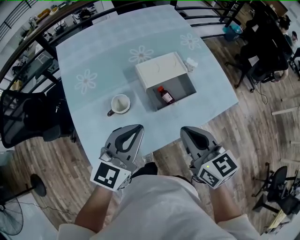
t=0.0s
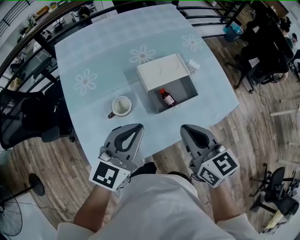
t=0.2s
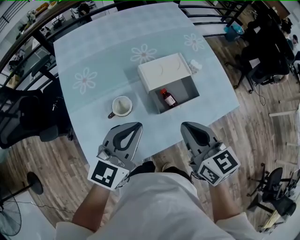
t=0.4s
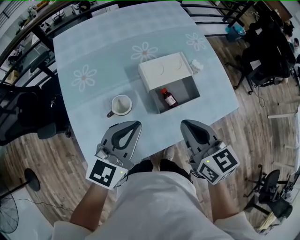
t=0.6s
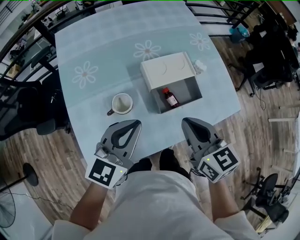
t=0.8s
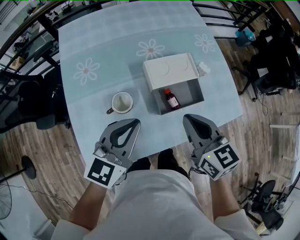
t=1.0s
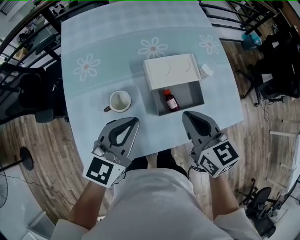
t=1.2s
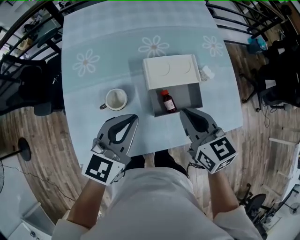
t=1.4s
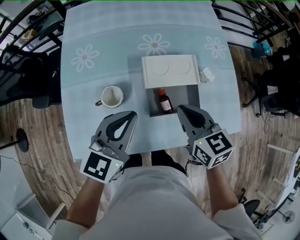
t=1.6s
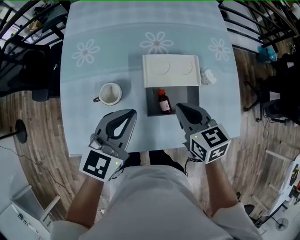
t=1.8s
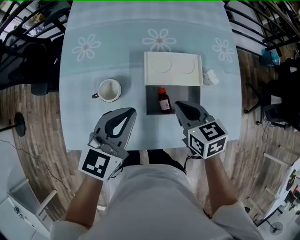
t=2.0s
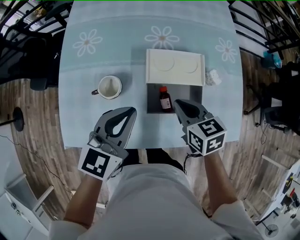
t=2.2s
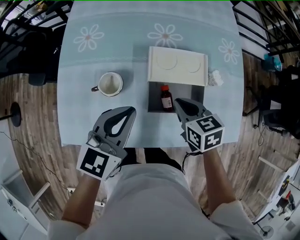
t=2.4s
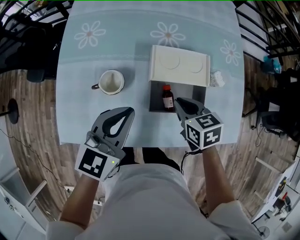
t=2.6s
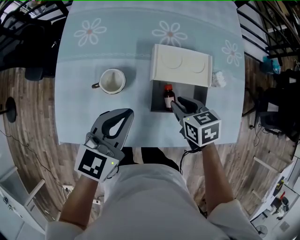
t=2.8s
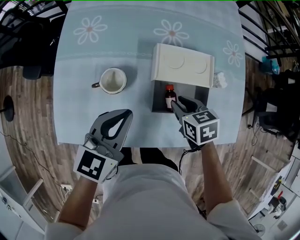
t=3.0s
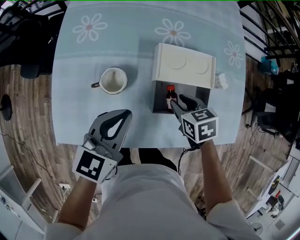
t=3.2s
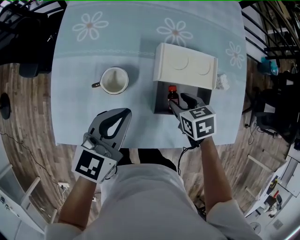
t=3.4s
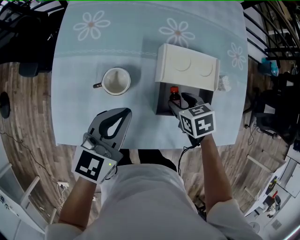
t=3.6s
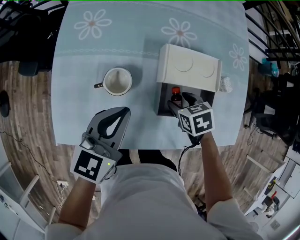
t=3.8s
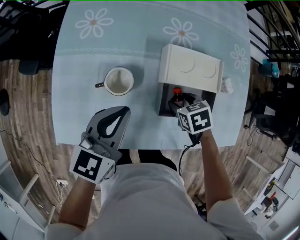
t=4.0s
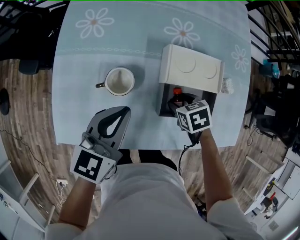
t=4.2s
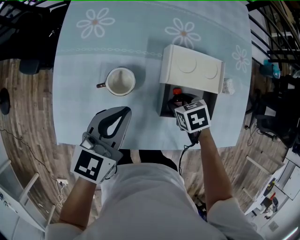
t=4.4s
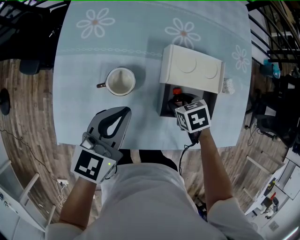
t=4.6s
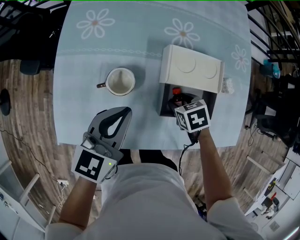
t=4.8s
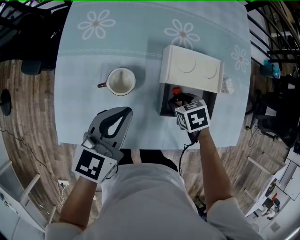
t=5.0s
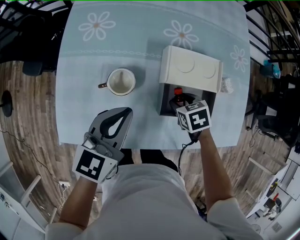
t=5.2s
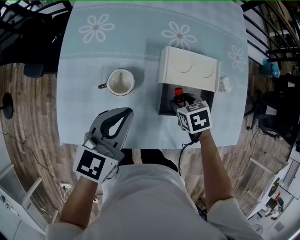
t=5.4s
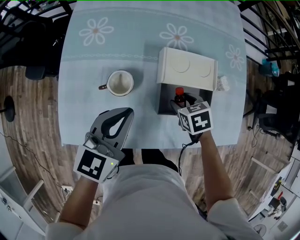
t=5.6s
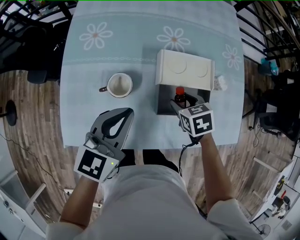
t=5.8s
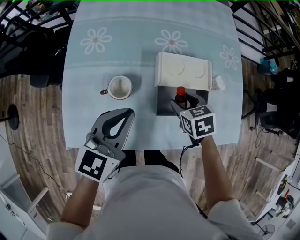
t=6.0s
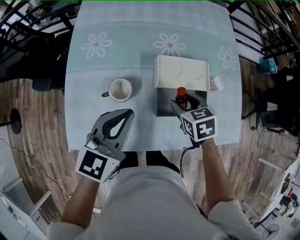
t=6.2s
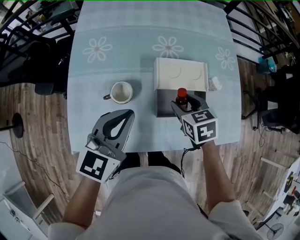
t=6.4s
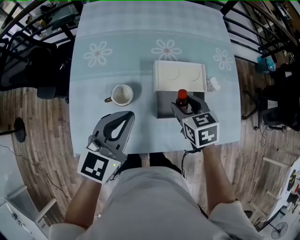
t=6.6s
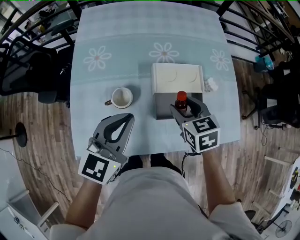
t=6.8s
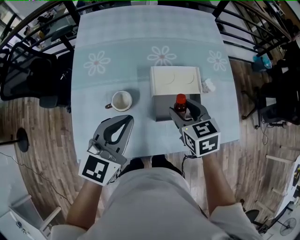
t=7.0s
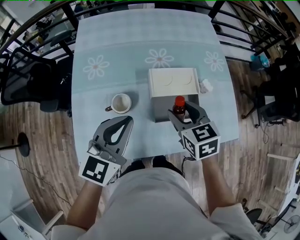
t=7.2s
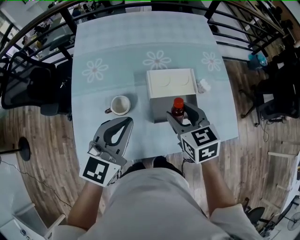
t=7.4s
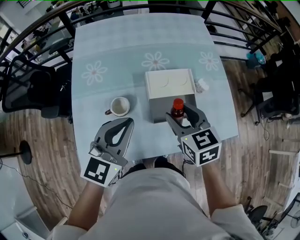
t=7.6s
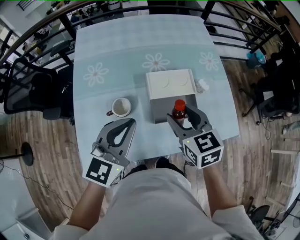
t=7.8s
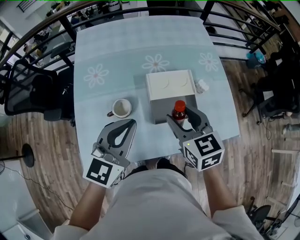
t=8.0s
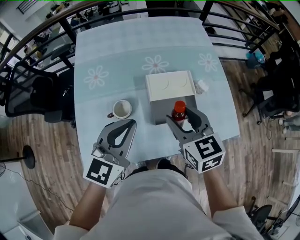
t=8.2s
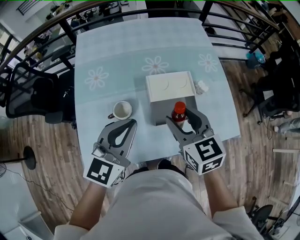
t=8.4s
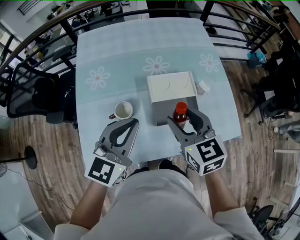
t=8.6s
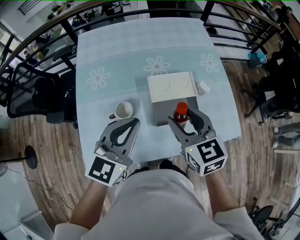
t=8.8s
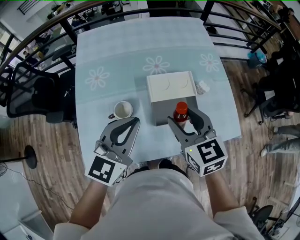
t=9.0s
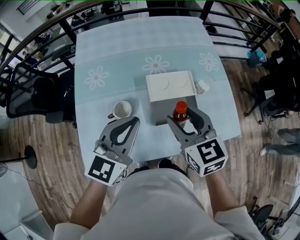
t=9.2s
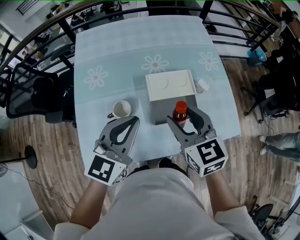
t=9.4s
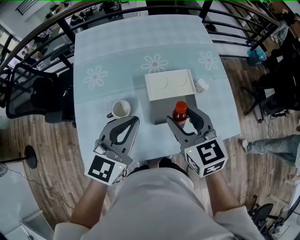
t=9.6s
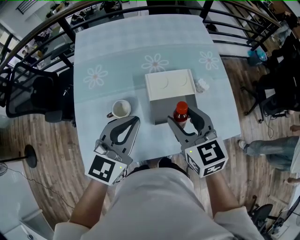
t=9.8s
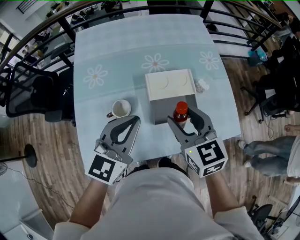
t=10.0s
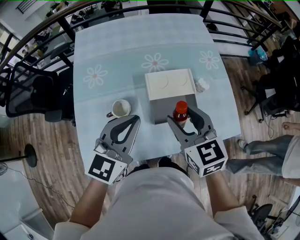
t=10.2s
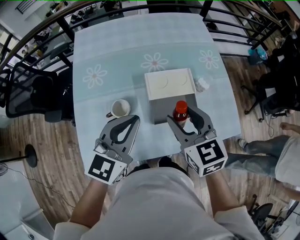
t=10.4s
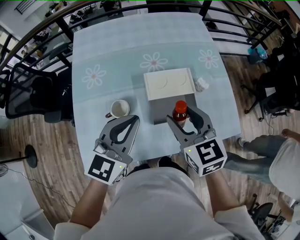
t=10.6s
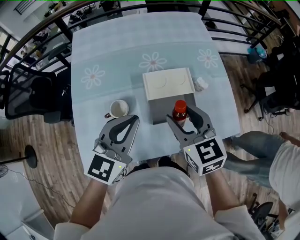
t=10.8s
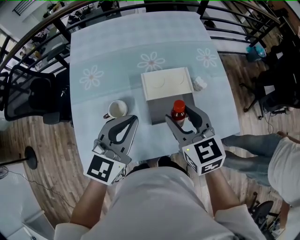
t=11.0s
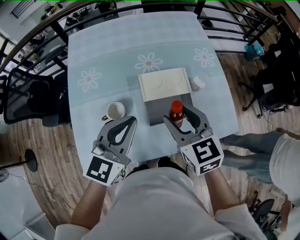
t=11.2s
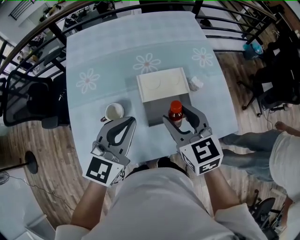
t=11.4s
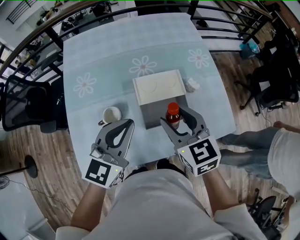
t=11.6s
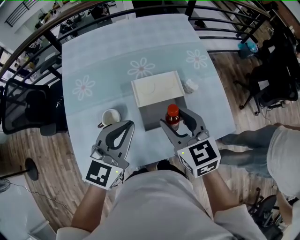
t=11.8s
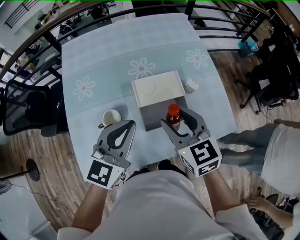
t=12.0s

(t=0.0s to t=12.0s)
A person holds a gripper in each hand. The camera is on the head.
t=0.0s - t=1.6s: The left gripper moves forward and downward, roughly 10 cm, while the right gripper goes roughly 20 cm forward and downward.
t=1.6s - t=3.0s: The right gripper goes some 15 cm downward, swivels some 30 degrees, and opens up; the left gripper moves downward, roughly 5 cm.
t=3.0s - t=4.4s: The right gripper is displaced downward by about 5 cm, and opens up.
t=4.4s - t=6.0s: Both grippers move upward, approximately 10 cm.
t=6.0s - t=7.6s: The left gripper goes about 10 cm upward. The right gripper moves upward, about 15 cm, and swivels about 30 degrees.
t=7.6s - t=10.4s: There are only small adjustments of the grippers.
t=10.4s - t=12.0s: The grippers move only a little.

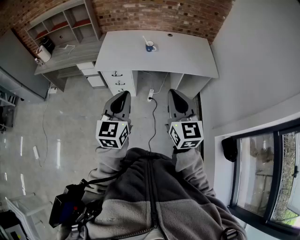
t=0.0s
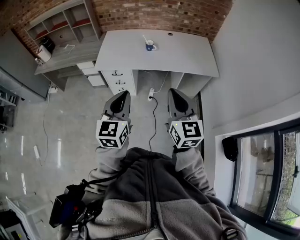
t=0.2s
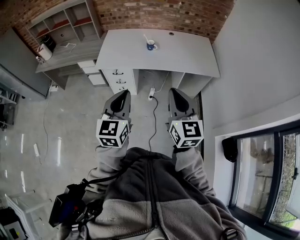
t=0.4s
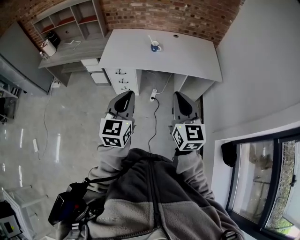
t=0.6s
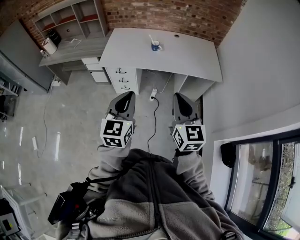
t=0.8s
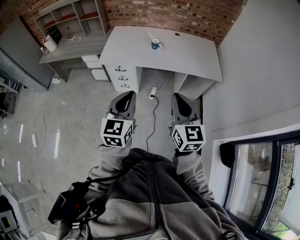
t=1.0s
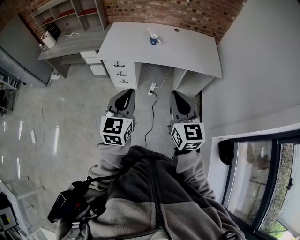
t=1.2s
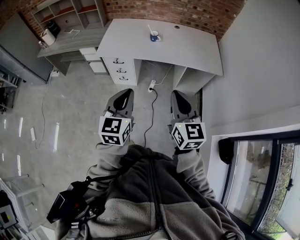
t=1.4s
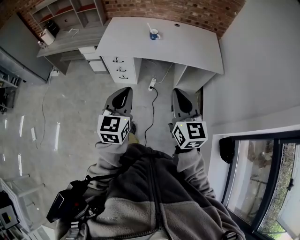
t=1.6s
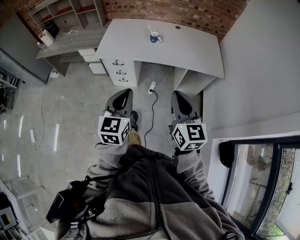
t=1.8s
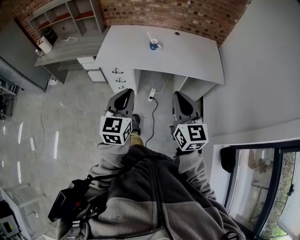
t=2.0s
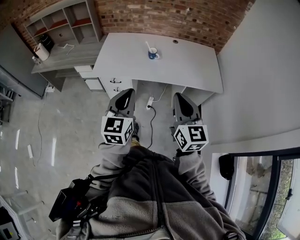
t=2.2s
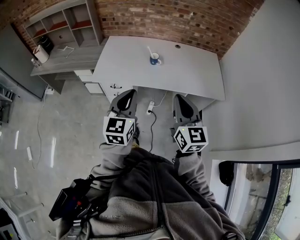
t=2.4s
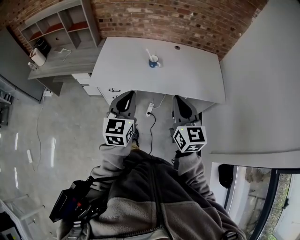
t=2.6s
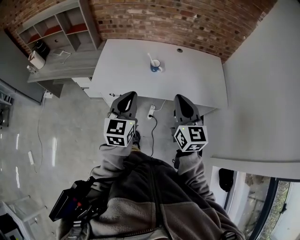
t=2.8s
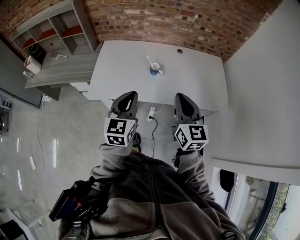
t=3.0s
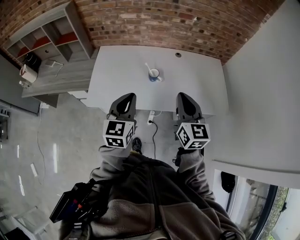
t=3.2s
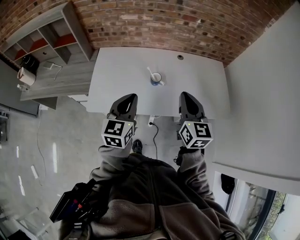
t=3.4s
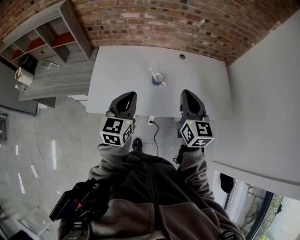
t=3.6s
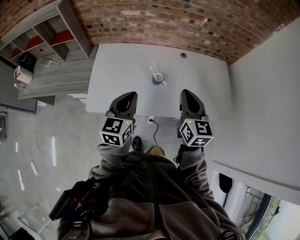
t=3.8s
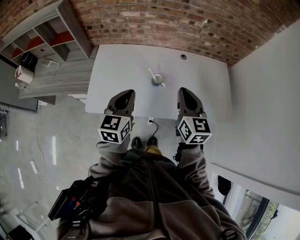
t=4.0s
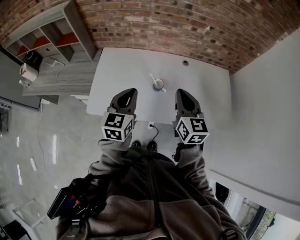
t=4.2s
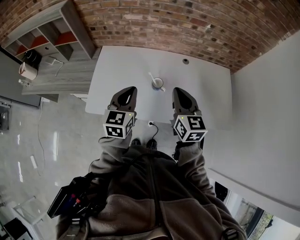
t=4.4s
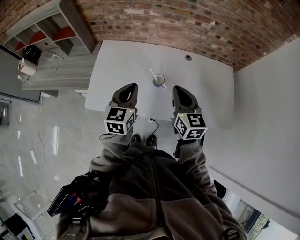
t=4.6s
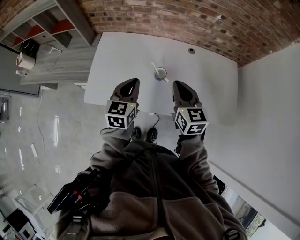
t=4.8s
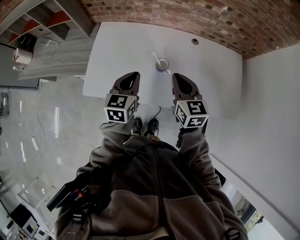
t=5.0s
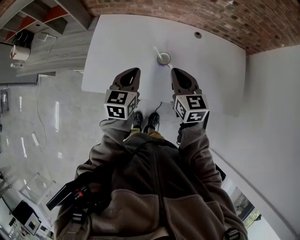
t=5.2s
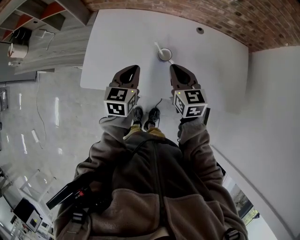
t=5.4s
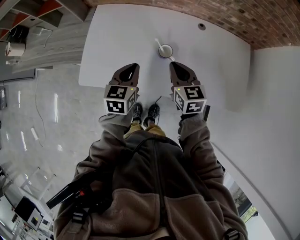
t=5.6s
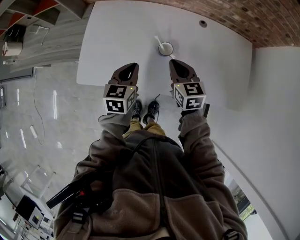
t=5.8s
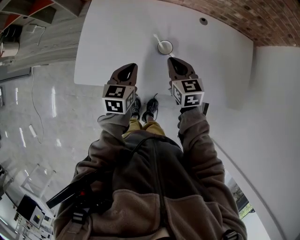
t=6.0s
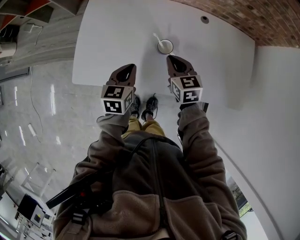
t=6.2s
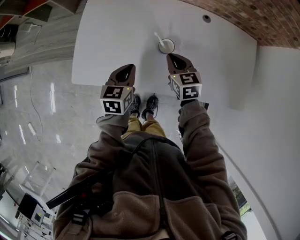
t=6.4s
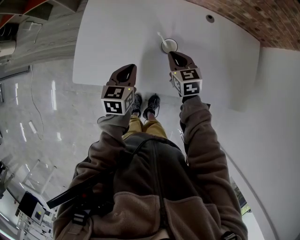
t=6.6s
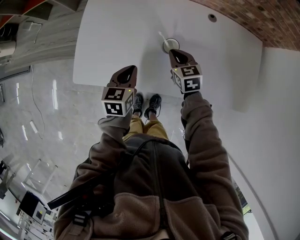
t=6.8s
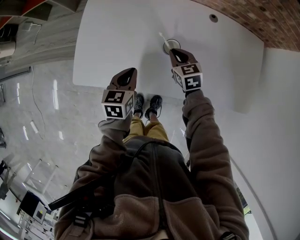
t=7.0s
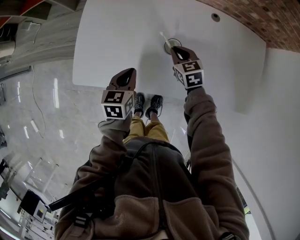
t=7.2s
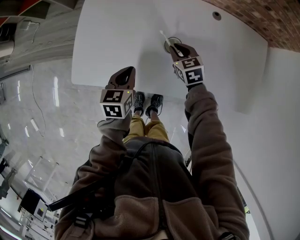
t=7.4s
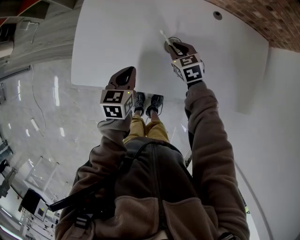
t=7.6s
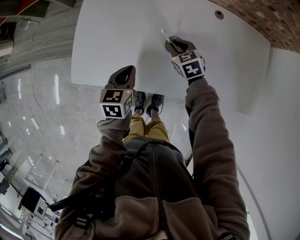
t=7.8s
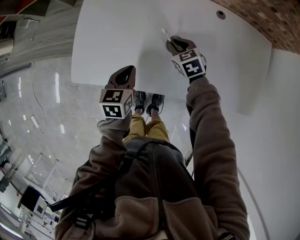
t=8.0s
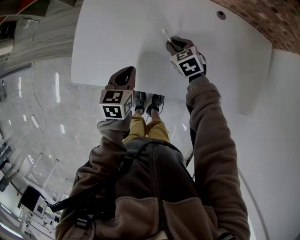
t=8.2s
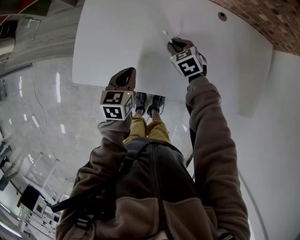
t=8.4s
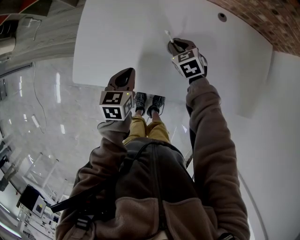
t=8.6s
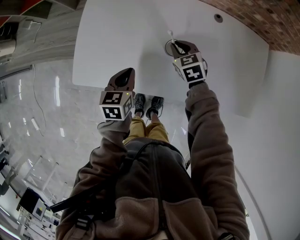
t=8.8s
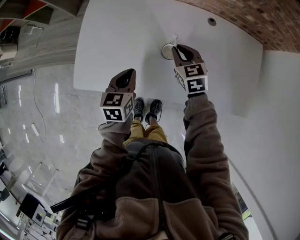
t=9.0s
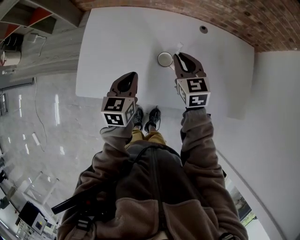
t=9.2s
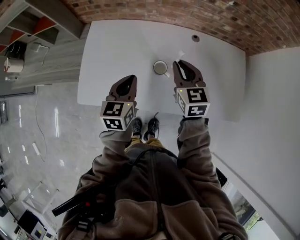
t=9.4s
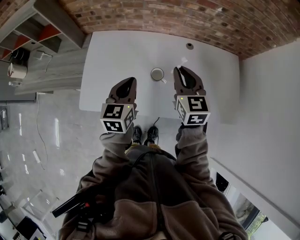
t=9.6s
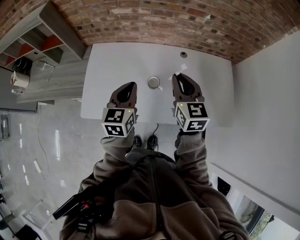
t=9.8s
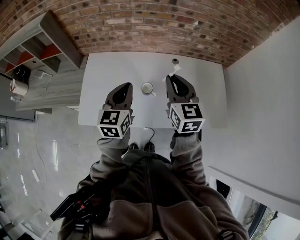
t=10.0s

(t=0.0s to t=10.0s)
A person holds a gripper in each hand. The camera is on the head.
t=0.0s - t=1.4s: The left gripper changes place by roughly 5 cm. The right gripper changes place by roughly 5 cm.
t=1.4s - t=2.8s: The two grippers go some 30 cm forward.
t=2.8s - t=4.2s: The grippers both shift forward by roughly 25 cm.
t=4.2s - t=5.8s: The left gripper moves downward, approximately 15 cm, and swivels roughly 20 degrees. The right gripper shifts some 20 cm downward and forward, and swivels about 20 degrees.
t=5.8s - t=7.2s: The right gripper moves downward and forward, some 15 cm. Meanwhile the left gripper moves downward, approximately 10 cm.
t=7.2s - t=8.6s: The grippers stay close to where they were, moving slightly.
t=8.6s - t=10.0s: The grippers both shift upward by about 35 cm. The left gripper changes its angle by roughly 30 degrees; the right gripper points its fingers roughly 40 degrees further upward.

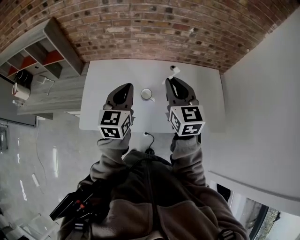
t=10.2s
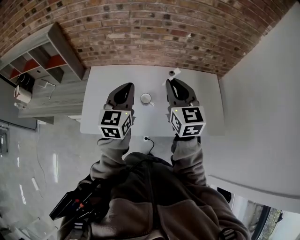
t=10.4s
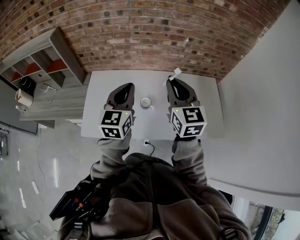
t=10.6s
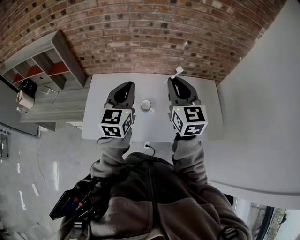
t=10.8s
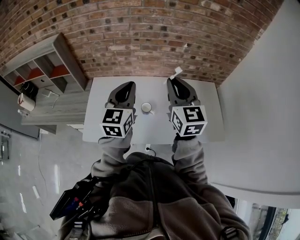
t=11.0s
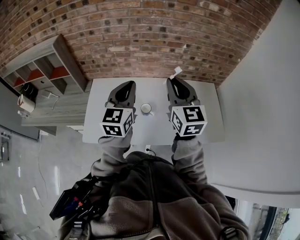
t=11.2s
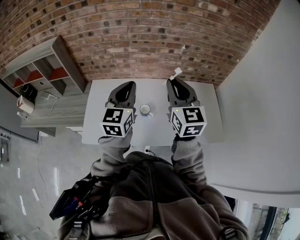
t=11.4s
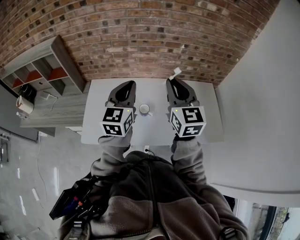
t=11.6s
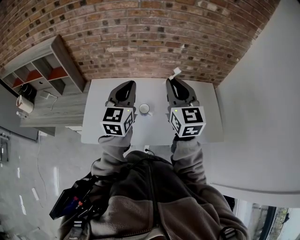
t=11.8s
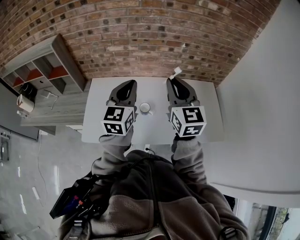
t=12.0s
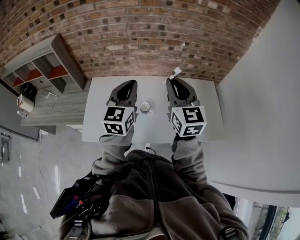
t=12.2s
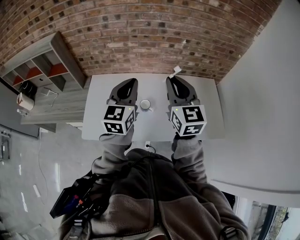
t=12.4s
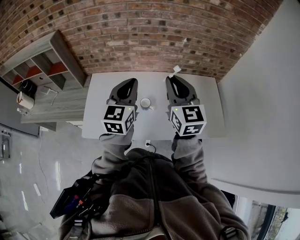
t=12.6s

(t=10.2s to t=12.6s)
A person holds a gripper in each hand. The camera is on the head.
t=10.2s - t=11.4s: Both grippers travel together upward, about 10 cm.
t=11.4s - t=12.6s: The grippers stay close to where they were, moving slightly.
